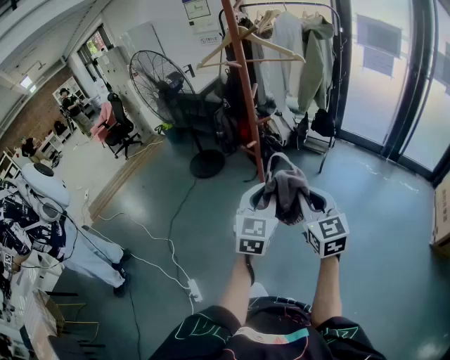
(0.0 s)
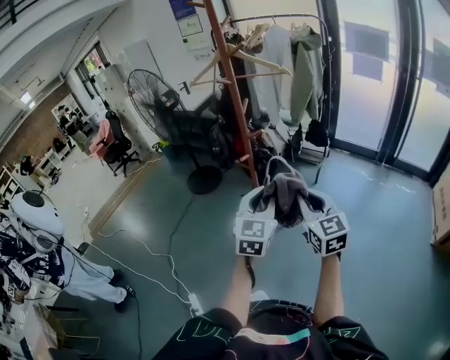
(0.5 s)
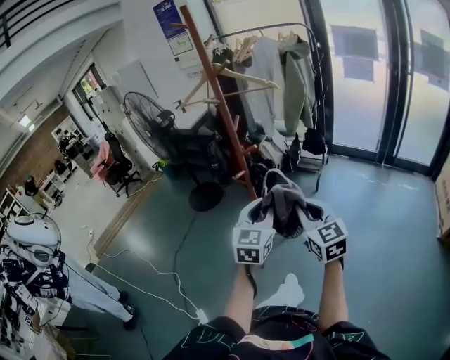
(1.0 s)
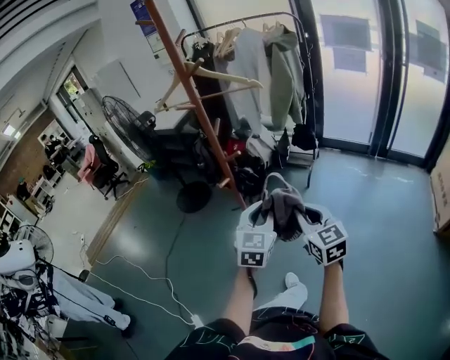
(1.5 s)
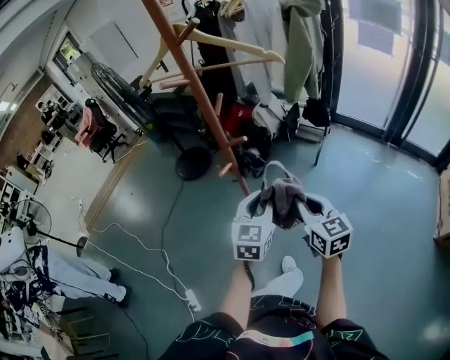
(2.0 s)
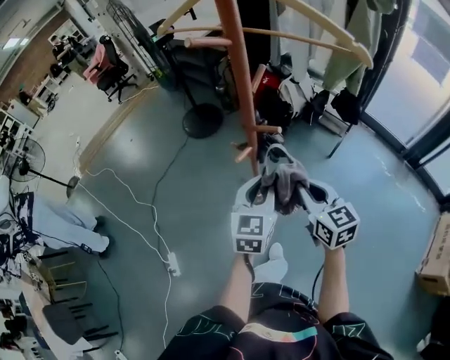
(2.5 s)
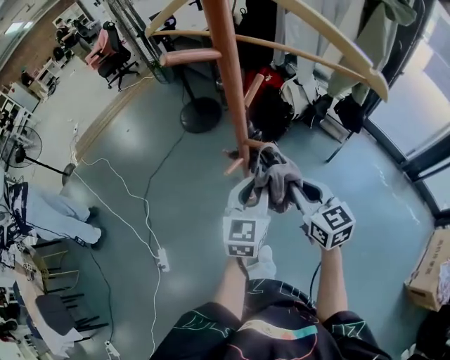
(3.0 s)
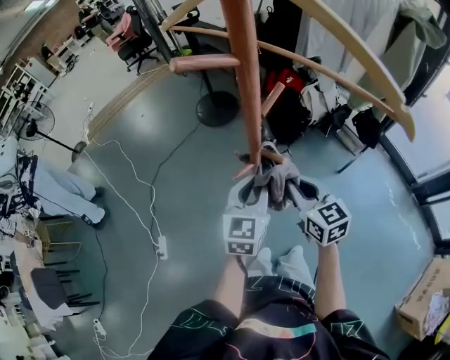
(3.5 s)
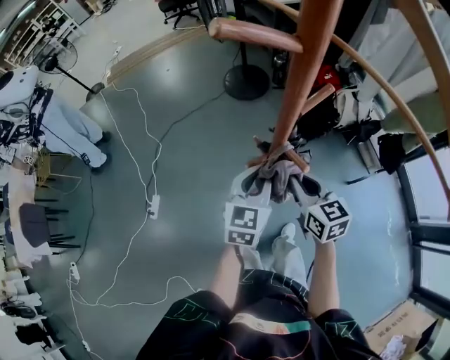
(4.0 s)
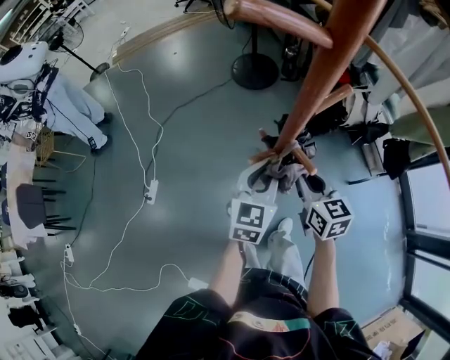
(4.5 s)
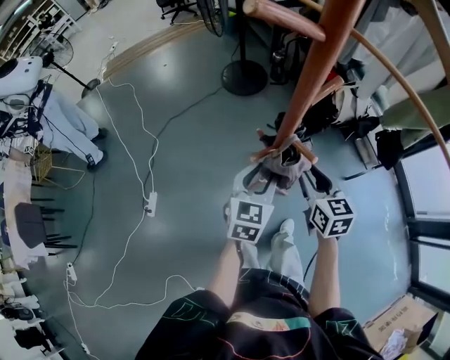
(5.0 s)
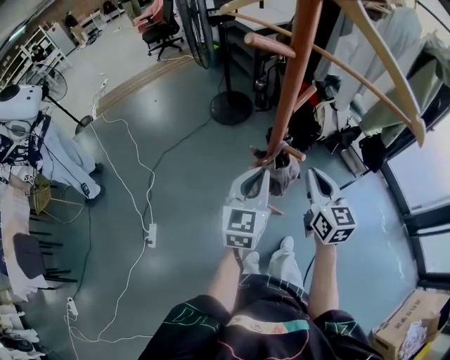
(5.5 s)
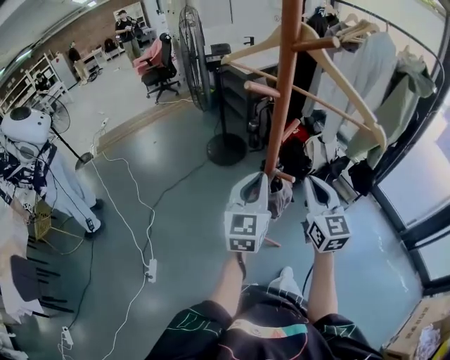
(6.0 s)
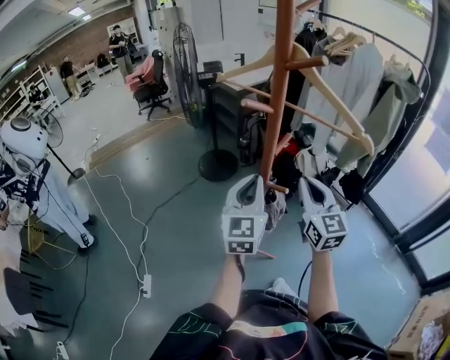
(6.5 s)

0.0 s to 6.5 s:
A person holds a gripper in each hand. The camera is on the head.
0.0 to 2.0 s: Both grippers travel together forward, to the right and downward, about 20 cm.
2.0 to 4.5 s: The right gripper moves about 25 cm, and turns by about 40 degrees, while the left gripper shifts by roughly 20 cm, and turns by about 40 degrees.
4.5 to 6.5 s: Both grippers travel together upward, roughly 20 cm. The left gripper swivels approximately 30 degrees, and opens, then closes again, while the right gripper changes its angle by approximately 40 degrees, and opens and closes again.

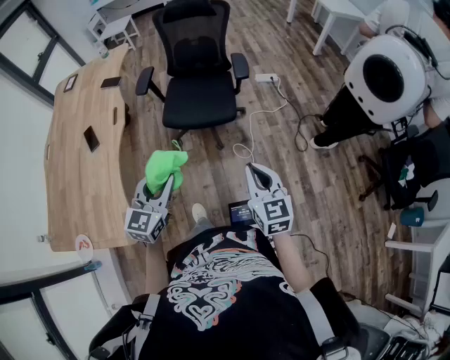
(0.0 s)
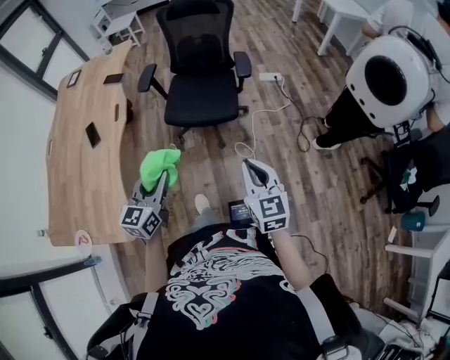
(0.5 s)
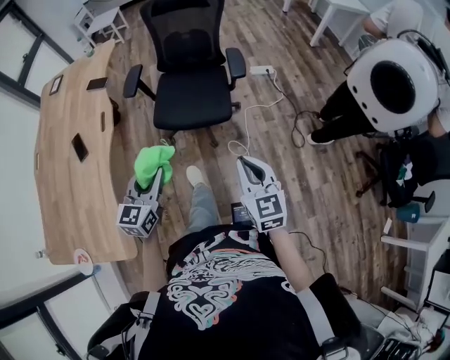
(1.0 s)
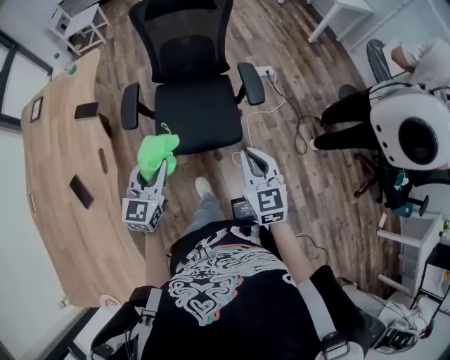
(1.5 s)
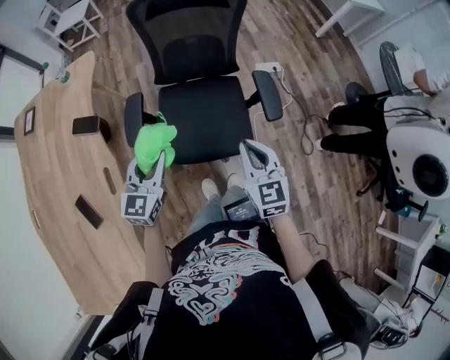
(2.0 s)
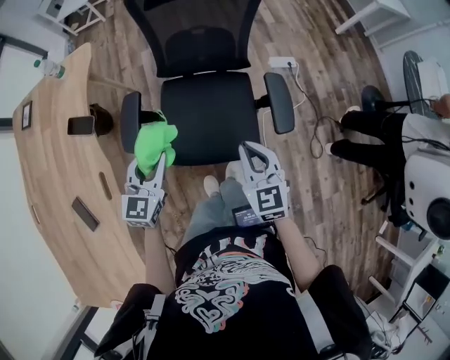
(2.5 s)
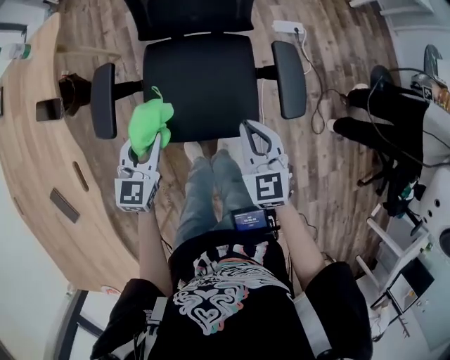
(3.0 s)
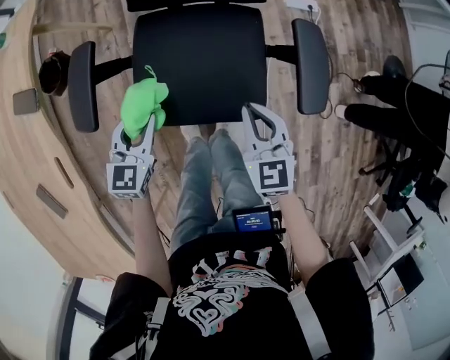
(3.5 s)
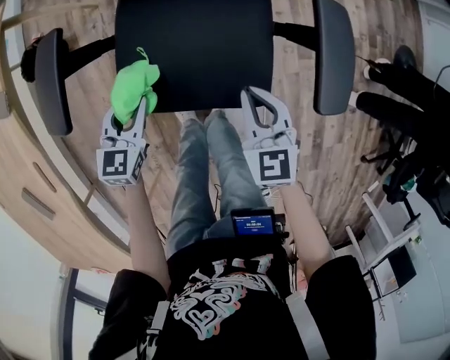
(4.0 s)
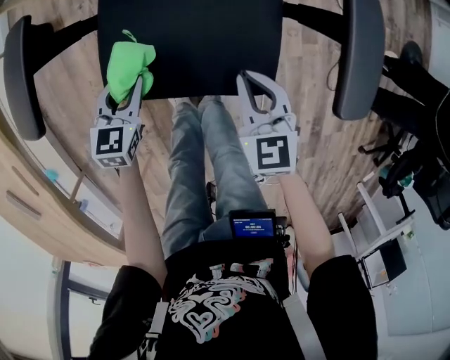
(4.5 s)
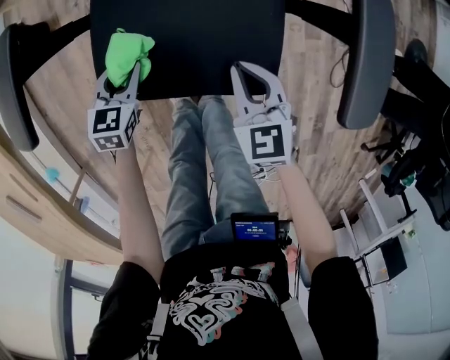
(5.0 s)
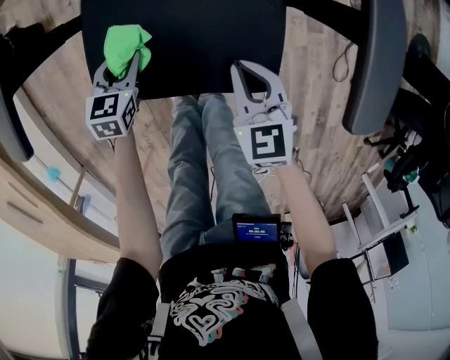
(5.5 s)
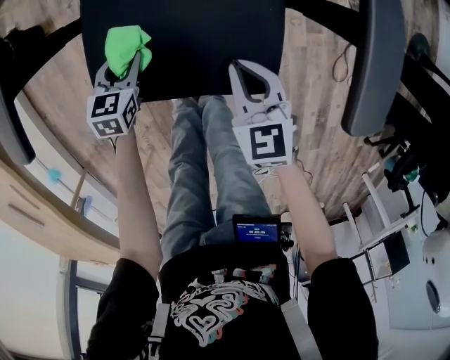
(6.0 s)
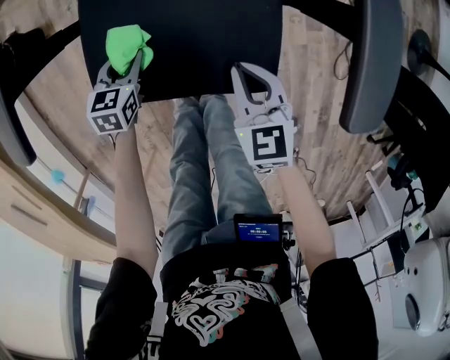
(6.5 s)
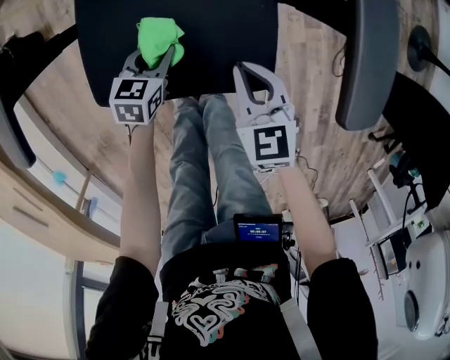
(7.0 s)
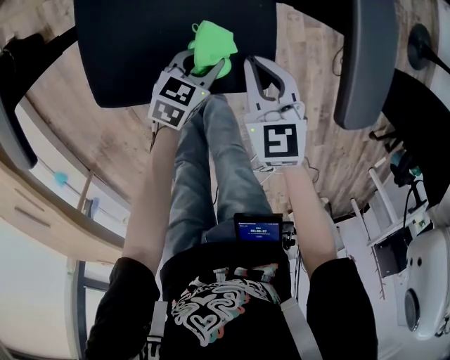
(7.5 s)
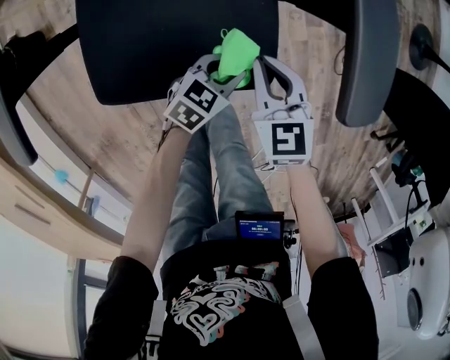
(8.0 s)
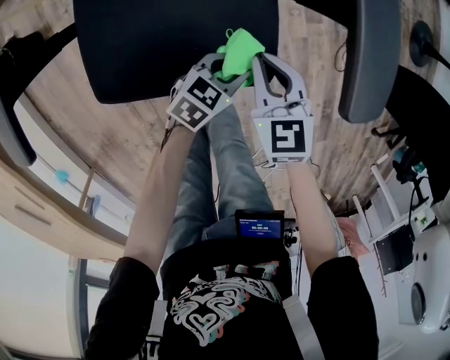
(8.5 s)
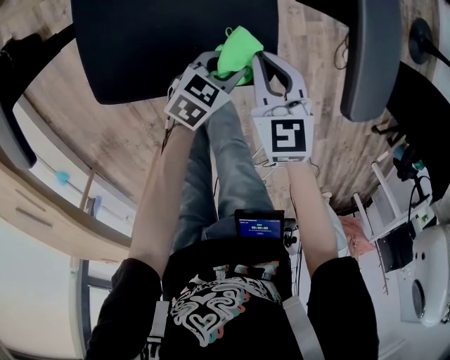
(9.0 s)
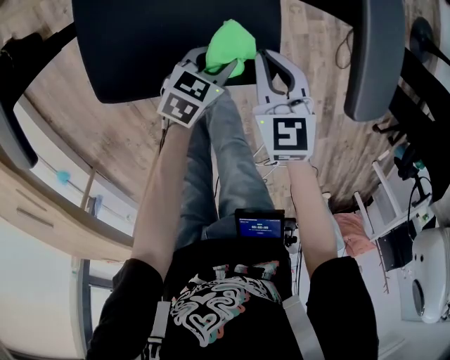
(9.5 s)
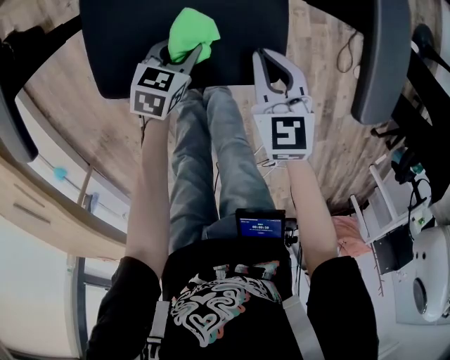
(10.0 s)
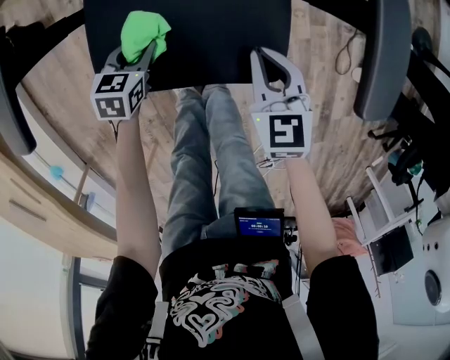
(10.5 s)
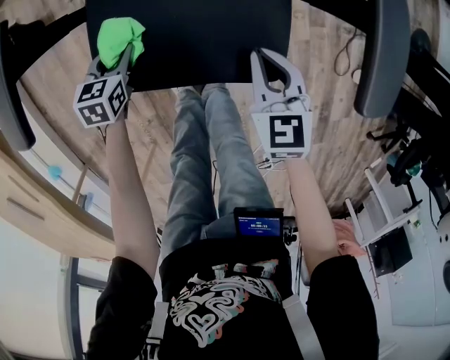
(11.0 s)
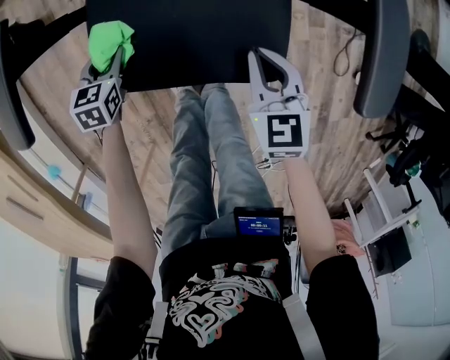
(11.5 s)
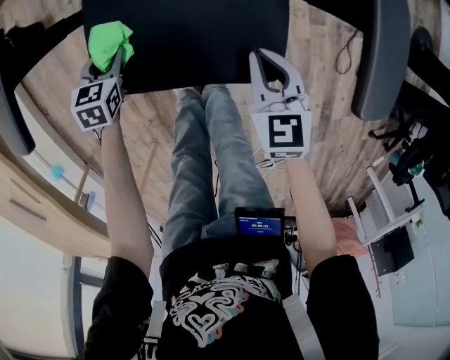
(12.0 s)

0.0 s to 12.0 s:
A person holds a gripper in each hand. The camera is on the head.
0.0 to 2.0 s: The pair of grippers is taken forward, roughly 50 cm.
2.0 to 4.0 s: The grippers both shift downward by about 30 cm. The left gripper changes its angle by approximately 20 degrees.
4.0 to 6.0 s: The left gripper goes about 15 cm downward. Meanwhile the right gripper goes approximately 10 cm downward.
6.0 to 8.0 s: The right gripper moves roughly 5 cm, while the left gripper moves approximately 25 cm, and swivels roughly 40 degrees.
8.0 to 10.0 s: The left gripper moves to the left, about 10 cm.
10.0 to 12.0 s: The left gripper shifts about 20 cm to the left, and turns by approximately 20 degrees.

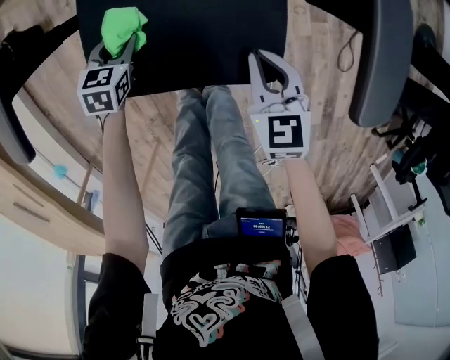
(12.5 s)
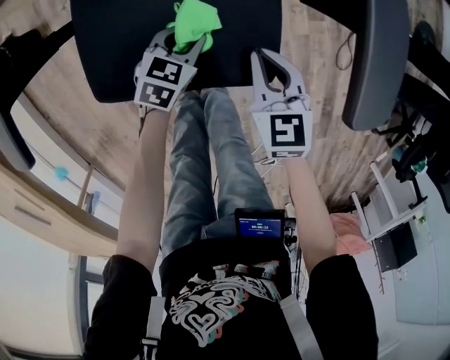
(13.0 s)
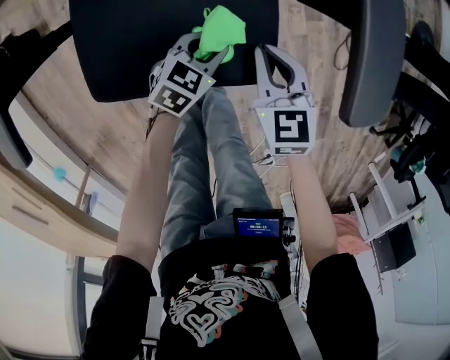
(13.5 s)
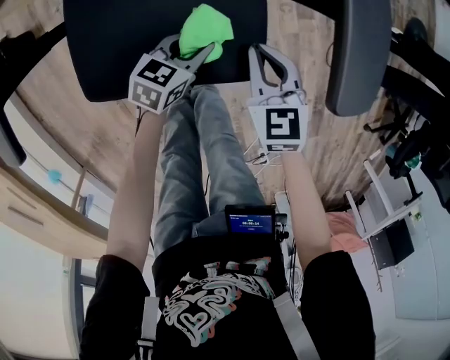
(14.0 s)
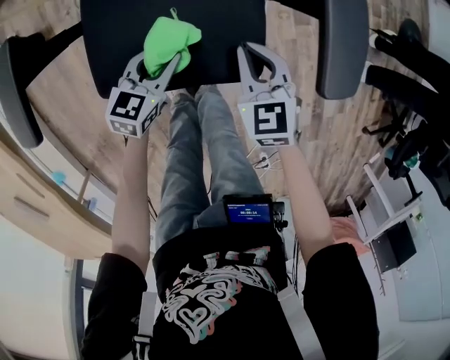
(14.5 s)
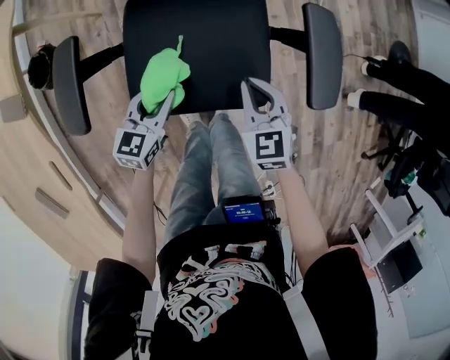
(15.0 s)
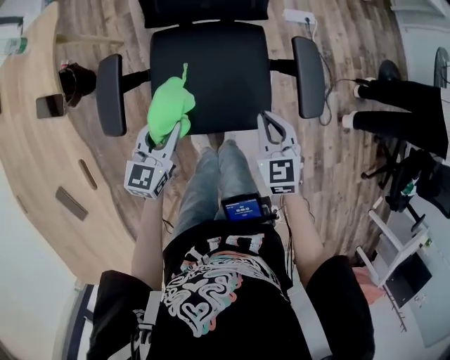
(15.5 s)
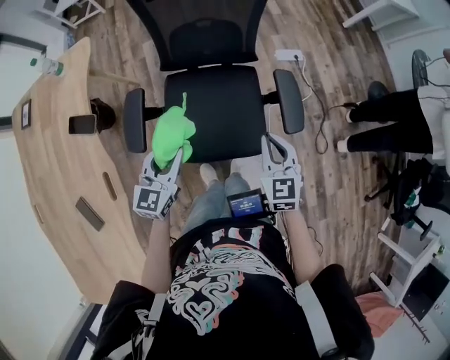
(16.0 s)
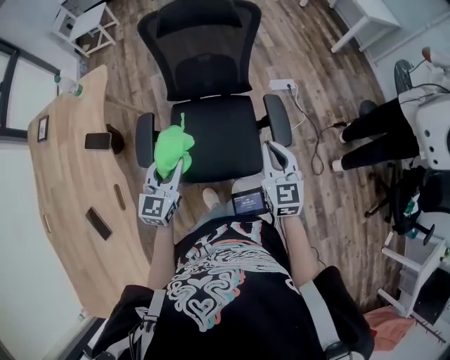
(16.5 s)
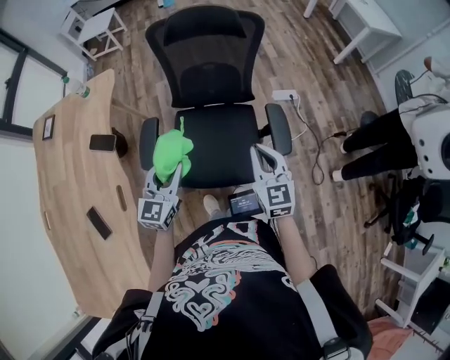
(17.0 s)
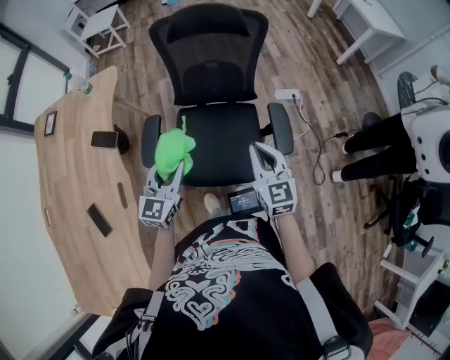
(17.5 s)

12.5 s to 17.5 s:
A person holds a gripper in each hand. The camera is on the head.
12.5 to 15.0 s: The right gripper travels upward by roughly 10 cm. Meanwhile the left gripper travels upward and to the right by about 20 cm, and swivels some 30 degrees.
15.0 to 17.5 s: The grippers both shift upward by approximately 30 cm. The right gripper swivels approximately 30 degrees. Meanwhile the left gripper swivels approximately 30 degrees.

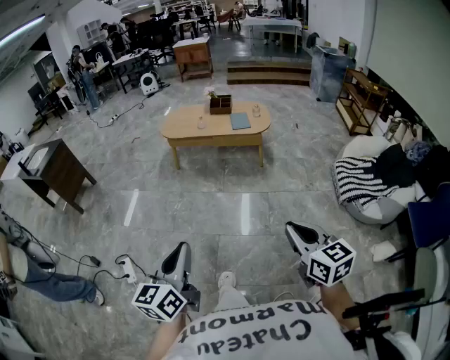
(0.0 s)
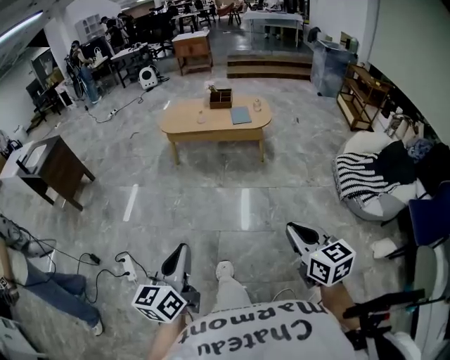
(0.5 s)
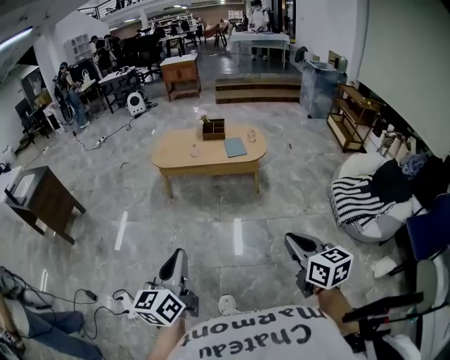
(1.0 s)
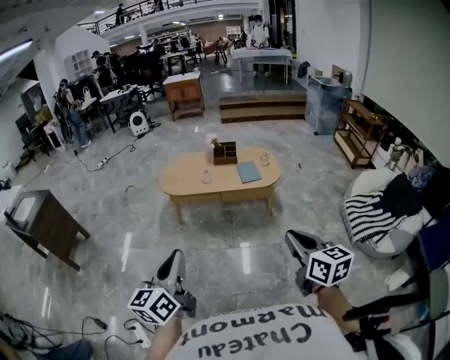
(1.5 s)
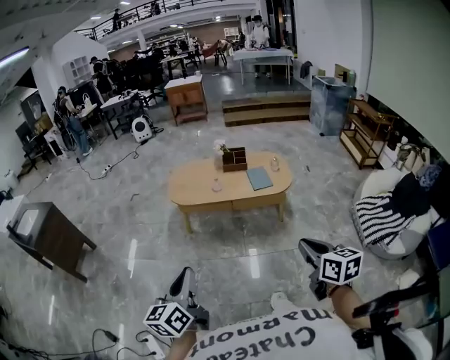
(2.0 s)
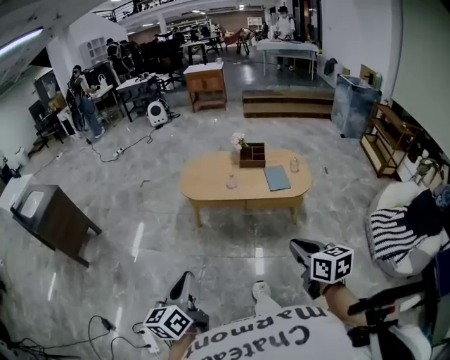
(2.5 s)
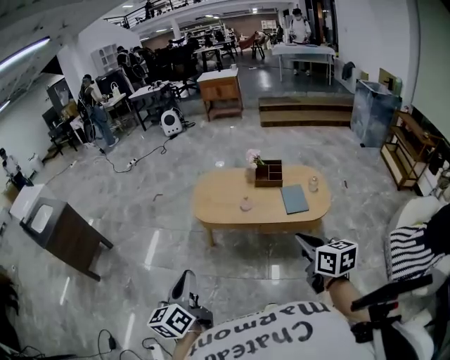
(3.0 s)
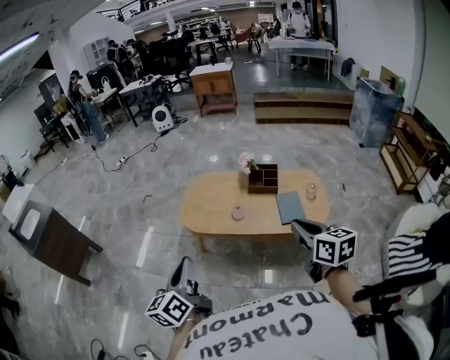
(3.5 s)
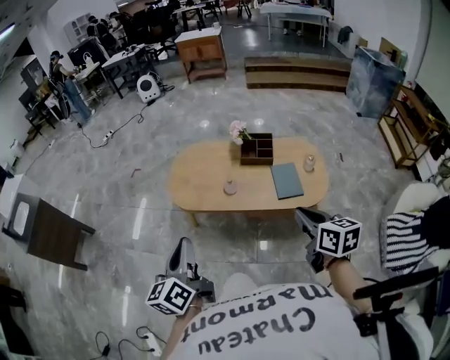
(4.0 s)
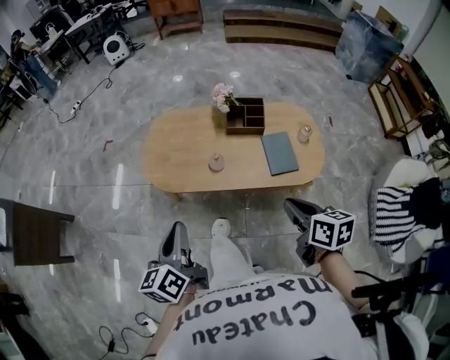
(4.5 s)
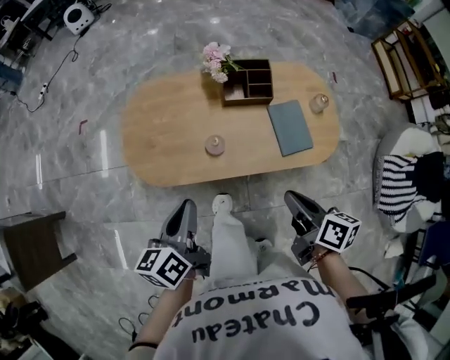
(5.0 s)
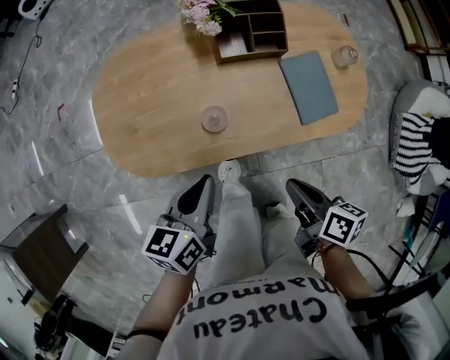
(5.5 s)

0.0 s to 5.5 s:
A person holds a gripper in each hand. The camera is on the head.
0.0 to 2.0 s: The right gripper heads forward, covering some 35 cm. Meanwhile the left gripper heads forward and to the left, covering approximately 40 cm.
2.0 to 3.5 s: The two grippers go some 40 cm forward.
3.5 to 5.5 s: The right gripper moves downward and forward, some 40 cm, and rotates around the line of its fingers by roughly 50 degrees, clockwise from behind. The left gripper goes approximately 50 cm forward and downward, and turns by approximately 50 degrees.
